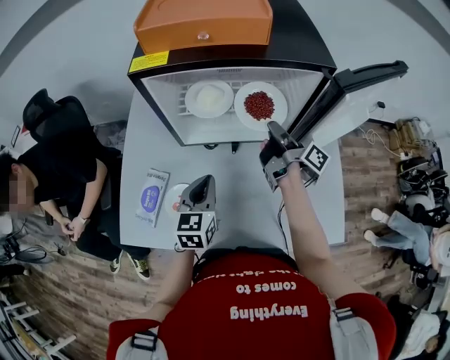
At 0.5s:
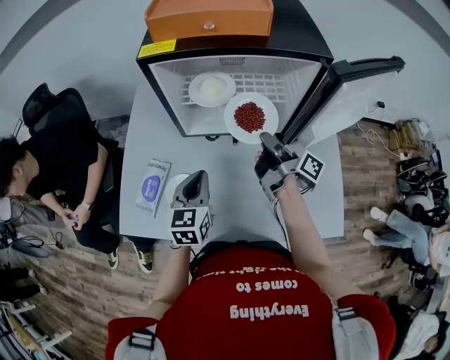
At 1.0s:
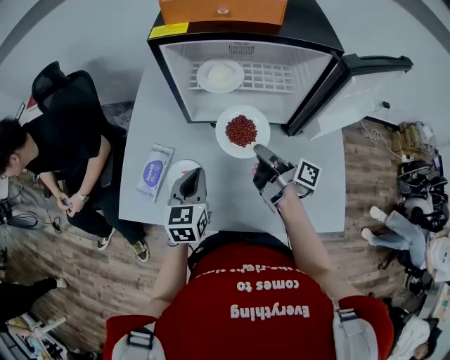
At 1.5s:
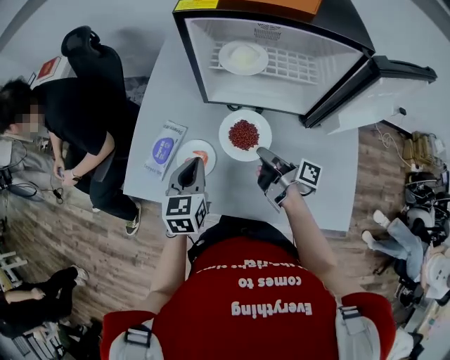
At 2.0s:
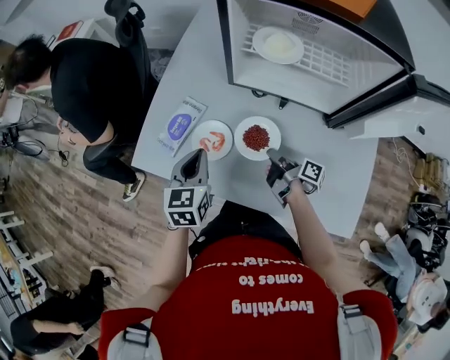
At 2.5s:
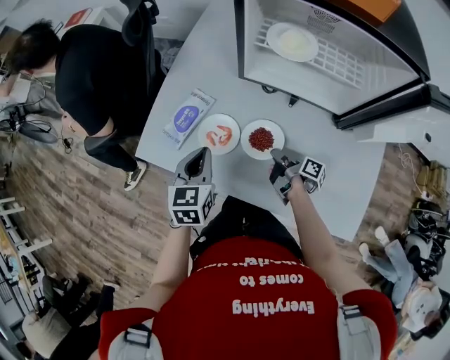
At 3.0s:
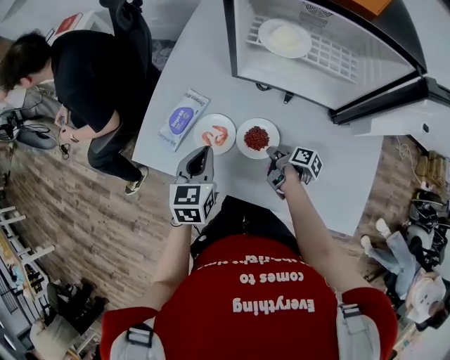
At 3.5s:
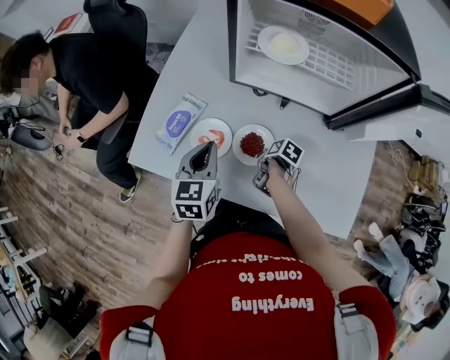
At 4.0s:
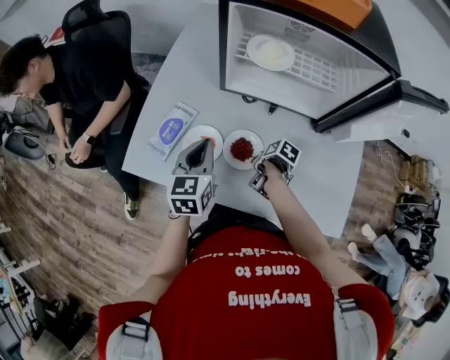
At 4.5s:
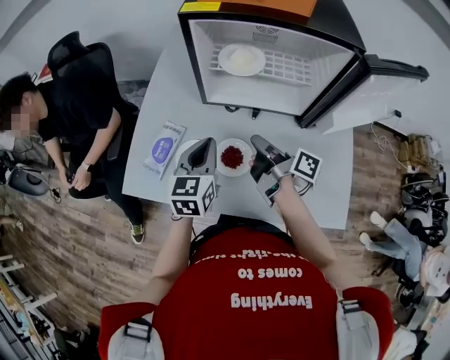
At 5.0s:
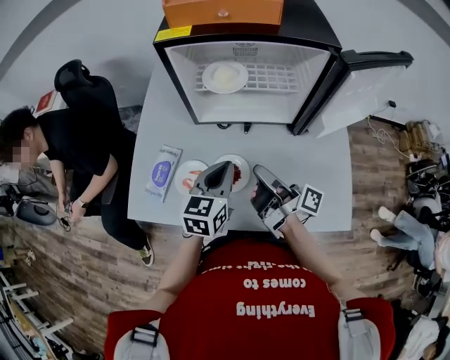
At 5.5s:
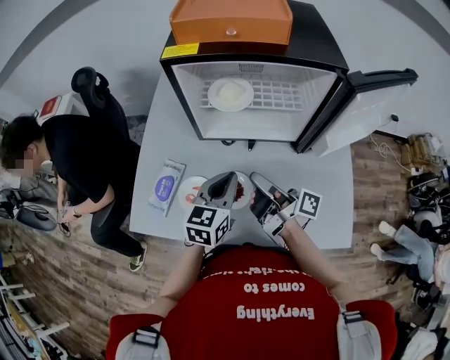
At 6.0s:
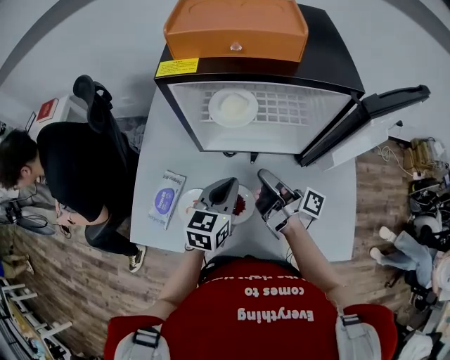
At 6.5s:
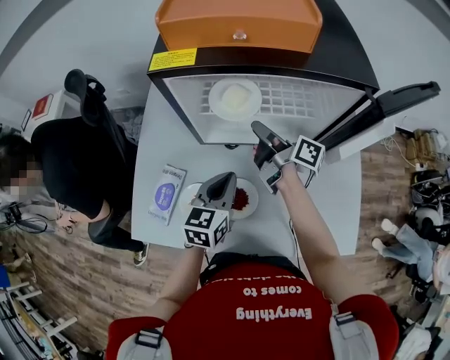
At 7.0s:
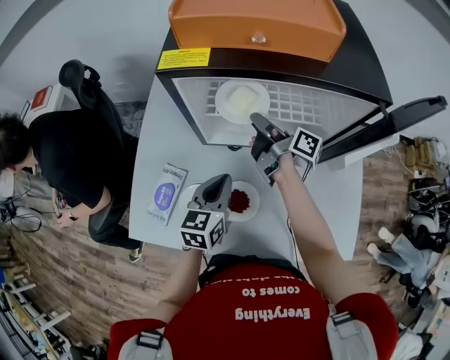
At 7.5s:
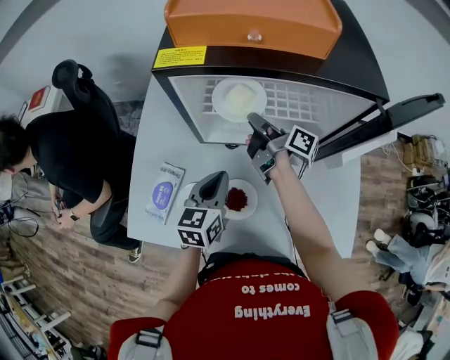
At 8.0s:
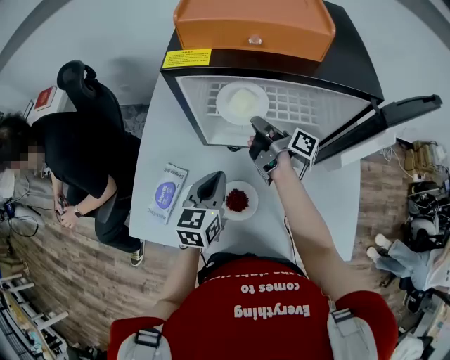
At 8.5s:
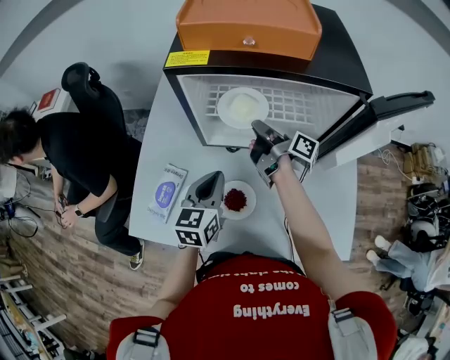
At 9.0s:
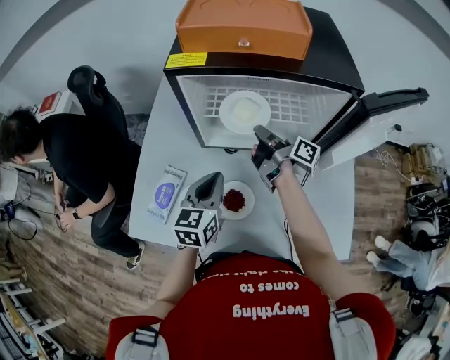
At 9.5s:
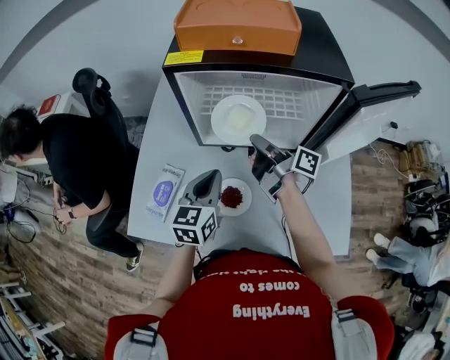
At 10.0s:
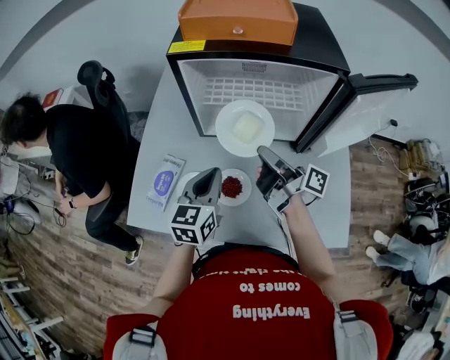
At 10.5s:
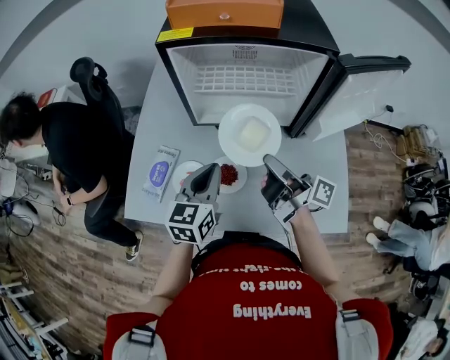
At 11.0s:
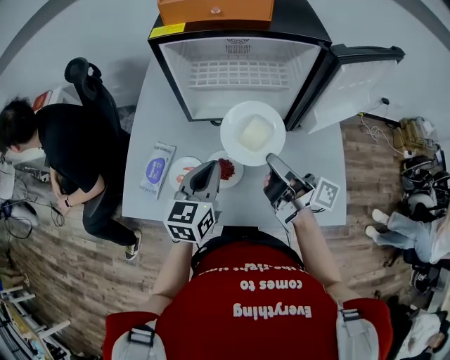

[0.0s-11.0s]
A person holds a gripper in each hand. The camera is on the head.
0.0s to 2.0s: The right gripper shifts by approximately 30 cm, and turns by about 40 degrees, while the left gripper moves roughly 15 cm, and swivels approximately 20 degrees.
2.0s to 3.5s: The right gripper is displaced downward by some 10 cm, and tilts its fingers some 50 degrees downward.
3.5s to 5.5s: The left gripper shifts by roughly 15 cm, and swivels some 20 degrees, while the right gripper shifts some 30 cm upward, tilts its fingers about 80 degrees upward, and closes up.
5.5s to 7.5s: The right gripper moves forward, about 25 cm, and turns by some 20 degrees, while the left gripper shifts about 10 cm forward.
7.5s to 9.0s: The right gripper changes place by approximately 5 cm.
9.0s to 11.0s: The left gripper shifts roughly 10 cm backward, while the right gripper goes approximately 25 cm backward.

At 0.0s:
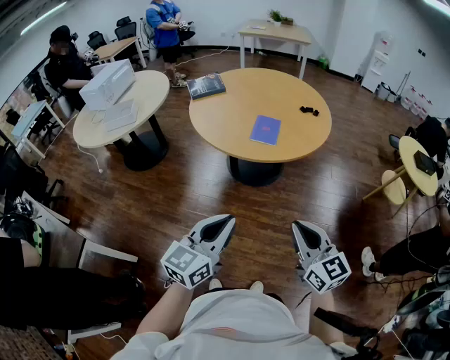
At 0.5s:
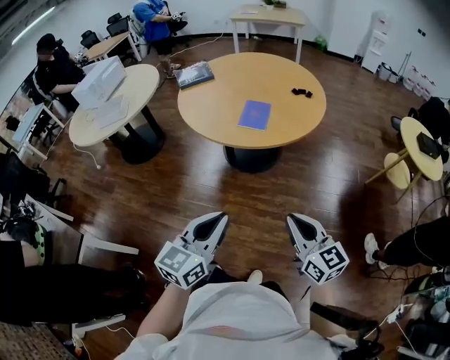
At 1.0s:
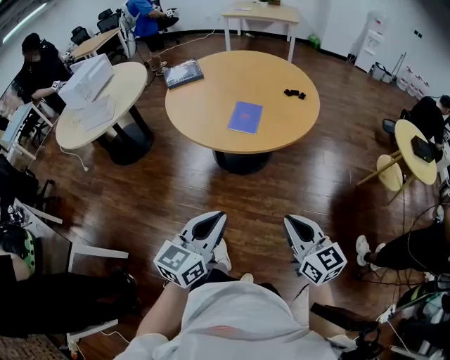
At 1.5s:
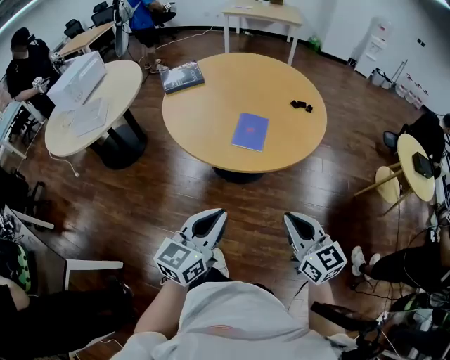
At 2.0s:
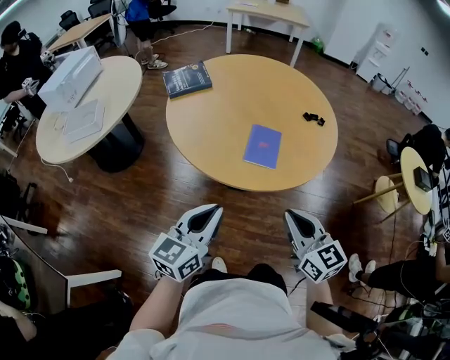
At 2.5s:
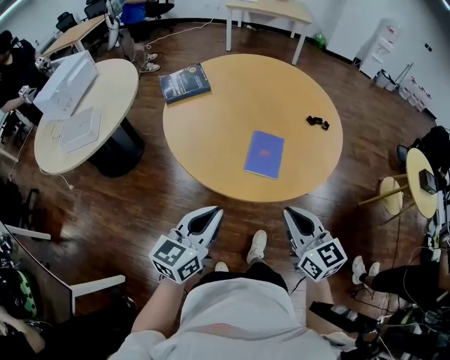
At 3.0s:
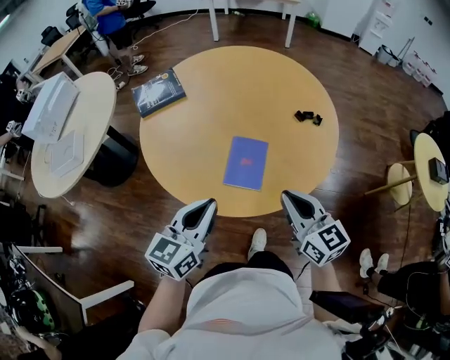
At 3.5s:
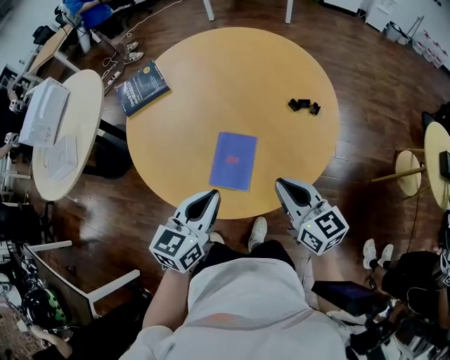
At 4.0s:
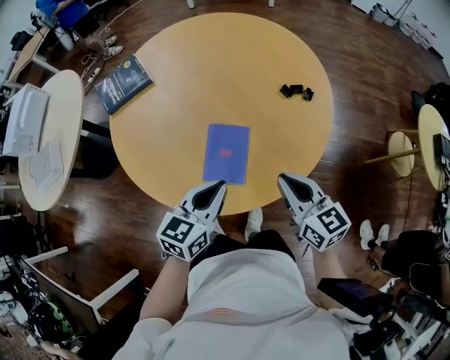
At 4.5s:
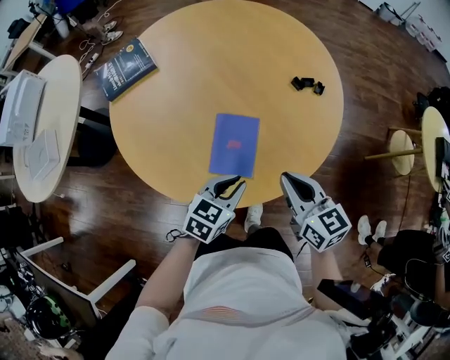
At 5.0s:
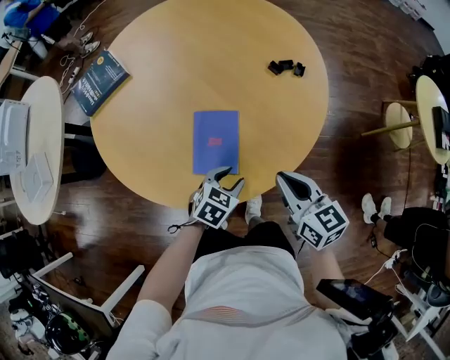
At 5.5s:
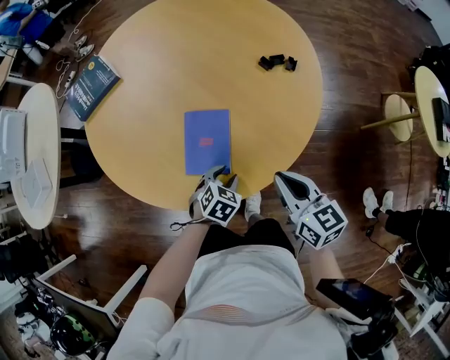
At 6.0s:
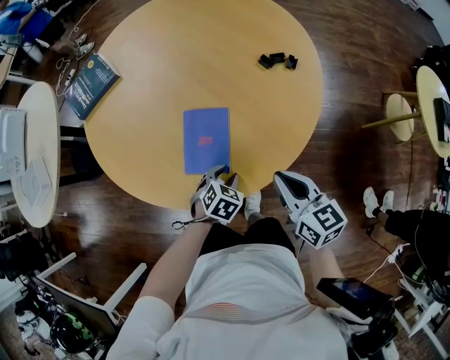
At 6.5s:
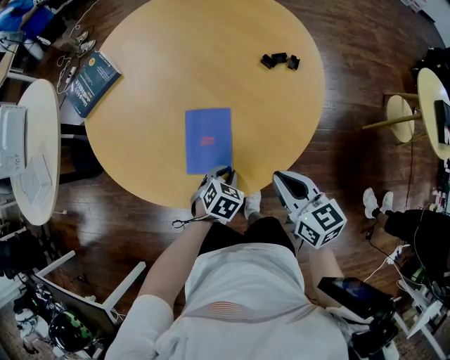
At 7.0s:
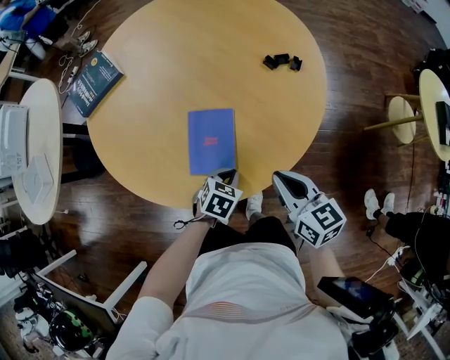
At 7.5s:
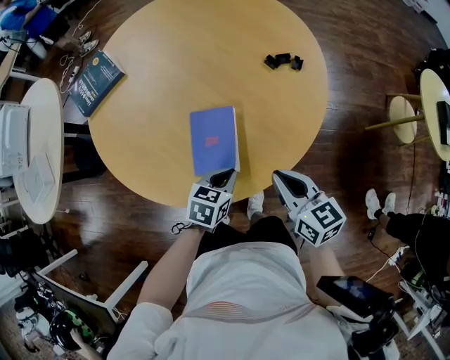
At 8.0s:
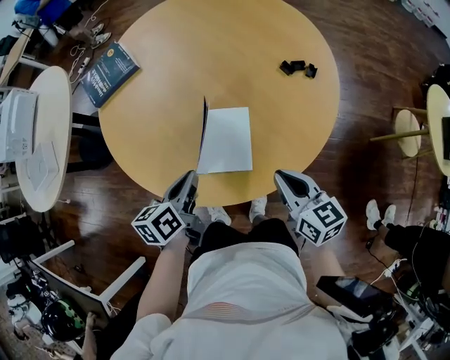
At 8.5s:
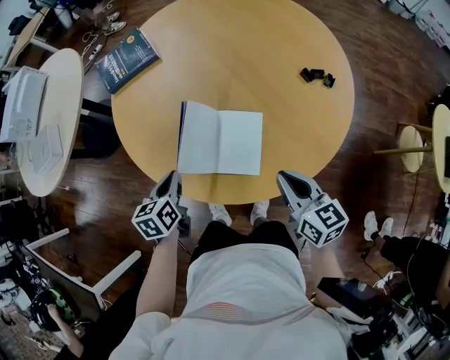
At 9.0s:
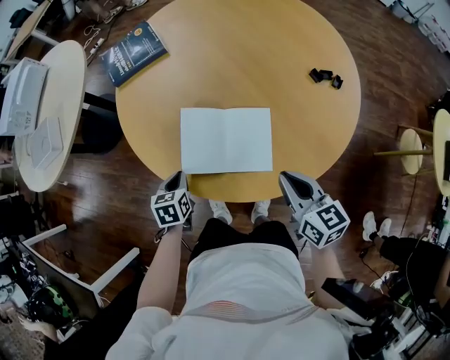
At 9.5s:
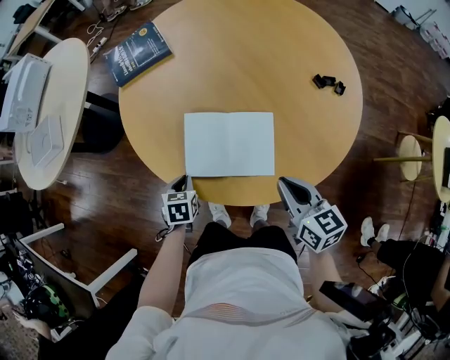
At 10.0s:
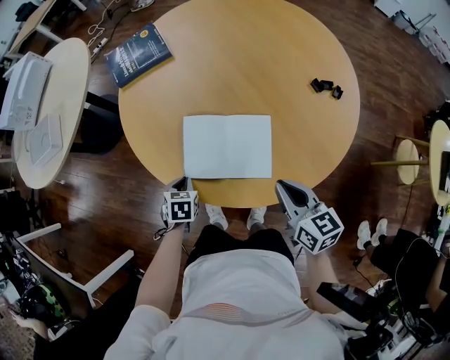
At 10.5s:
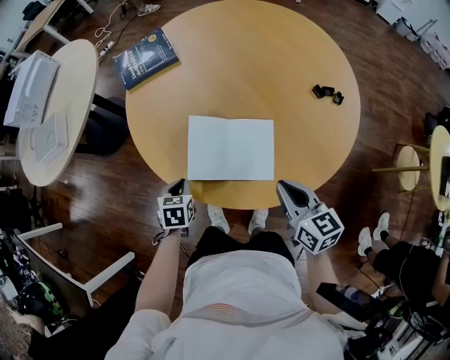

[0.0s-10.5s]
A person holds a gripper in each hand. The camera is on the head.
0.0s to 2.0s: The two grippers go some 30 cm forward.
2.0s to 4.0s: Both grippers move forward and to the right, about 30 cm.
4.0s to 6.5s: The right gripper moves downward, about 5 cm; the left gripper is displaced downward by some 25 cm, points its fingers roughly 40 degrees further downward, and opens, then closes again.
6.5s to 8.5s: The right gripper changes place by approximately 10 cm. The left gripper moves approximately 30 cm, and rotates around the line of its fingers by about 50 degrees, counterclockwise from behind.
8.5s to 10.5s: The left gripper travels downward by roughly 5 cm, and turns by some 20 degrees.

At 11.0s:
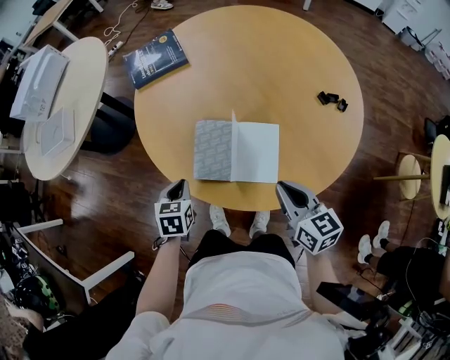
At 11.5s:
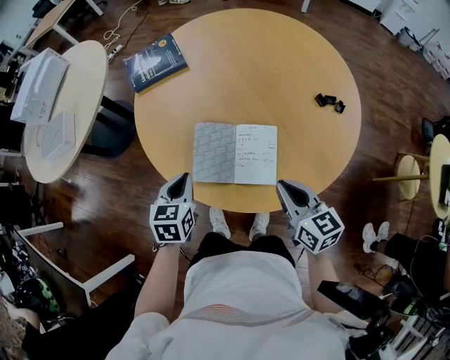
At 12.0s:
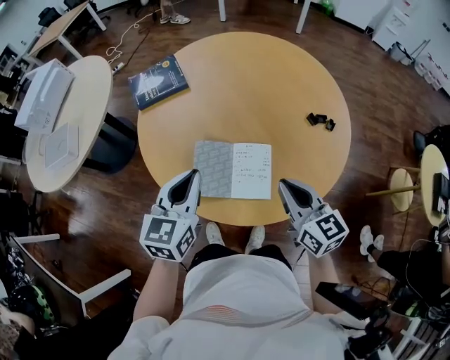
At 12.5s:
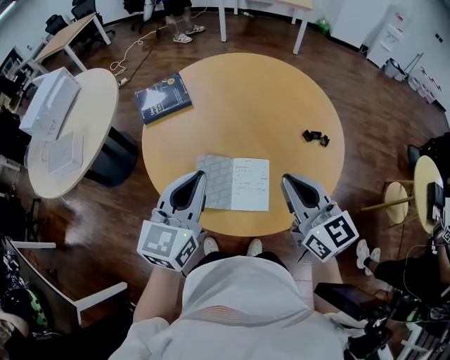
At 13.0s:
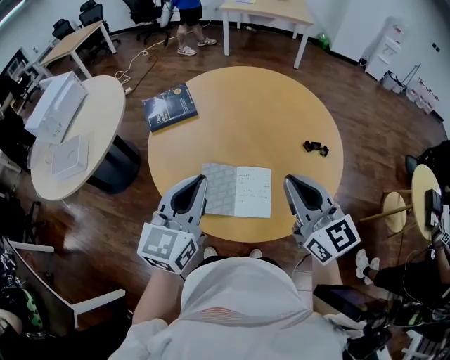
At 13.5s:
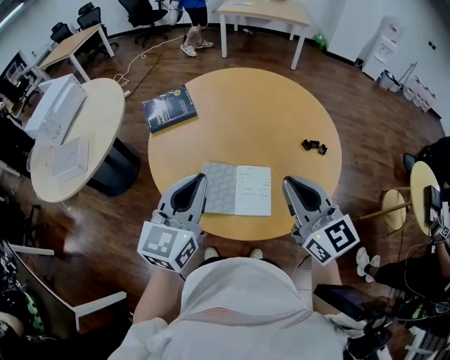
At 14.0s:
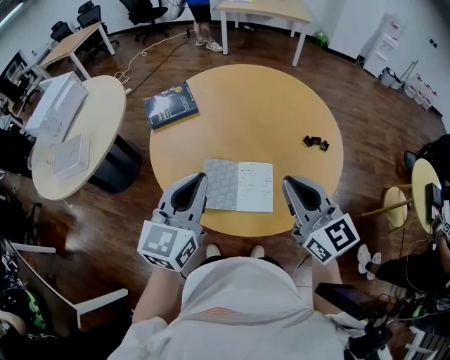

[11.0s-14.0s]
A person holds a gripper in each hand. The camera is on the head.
11.0s to 12.5s: The left gripper is displaced upward by roughly 30 cm, and tilts its fingers some 40 degrees upward, while the right gripper is displaced upward by approximately 20 cm, and rotates roughly 20 degrees.
12.5s to 14.0s: The right gripper changes place by some 5 cm.

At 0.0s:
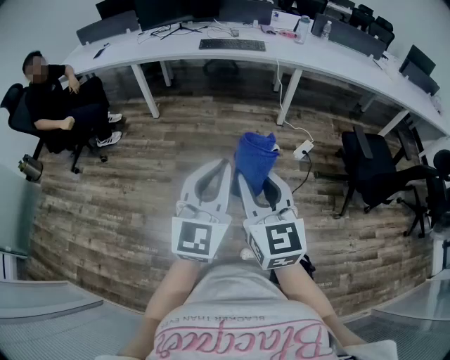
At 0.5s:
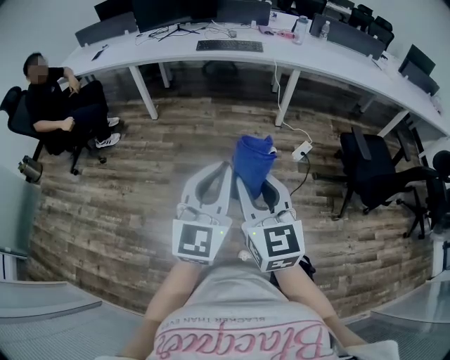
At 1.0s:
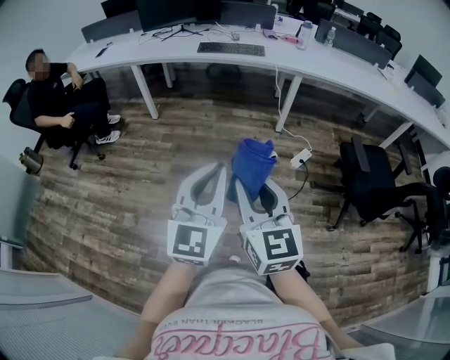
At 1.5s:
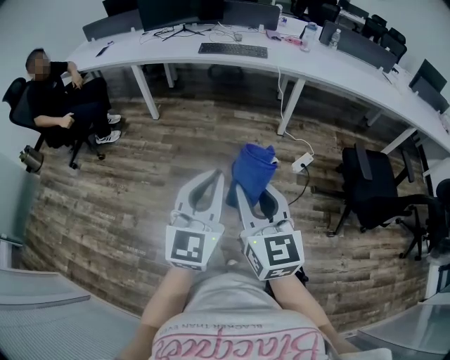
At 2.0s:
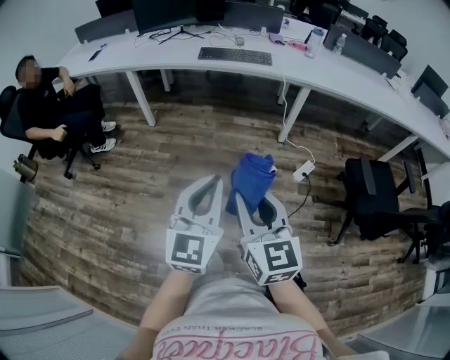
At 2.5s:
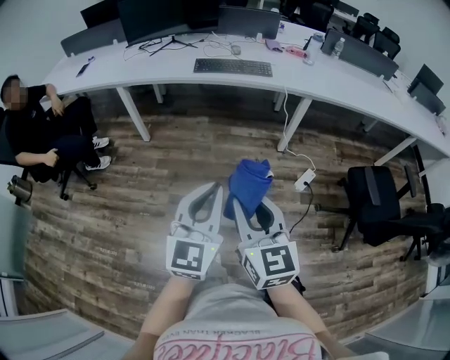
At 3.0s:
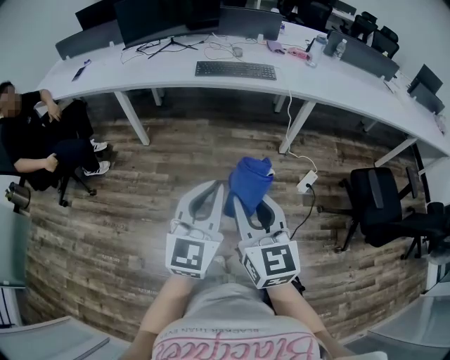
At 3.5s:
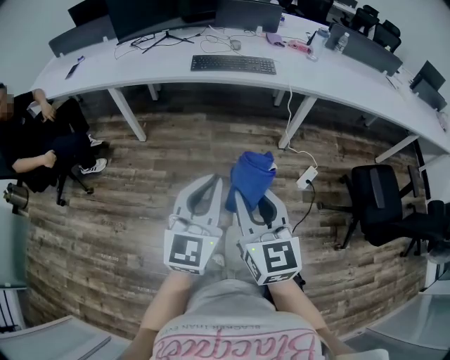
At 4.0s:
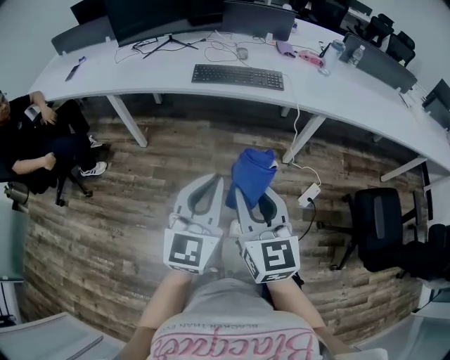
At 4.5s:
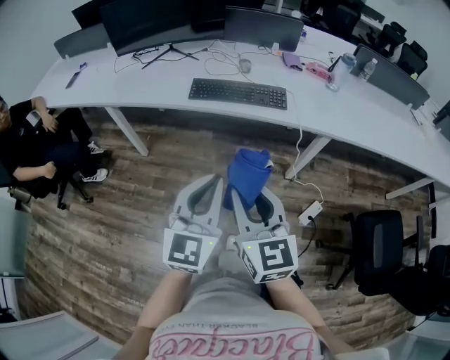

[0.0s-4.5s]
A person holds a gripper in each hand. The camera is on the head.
0.0s to 2.0s: The grippers both shift forward by some 15 cm.
2.0s to 4.5s: The pair of grippers is taken forward, roughly 40 cm.
